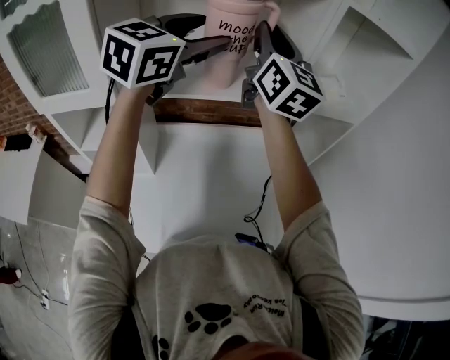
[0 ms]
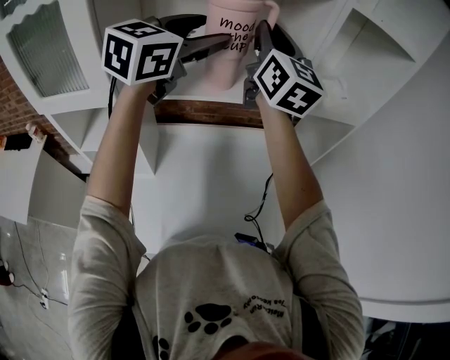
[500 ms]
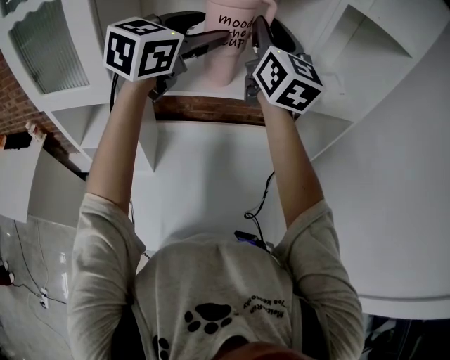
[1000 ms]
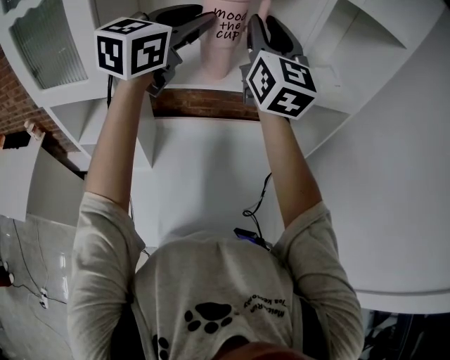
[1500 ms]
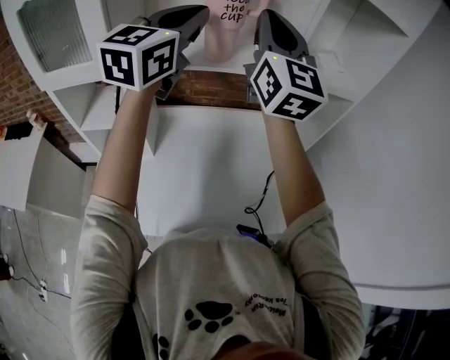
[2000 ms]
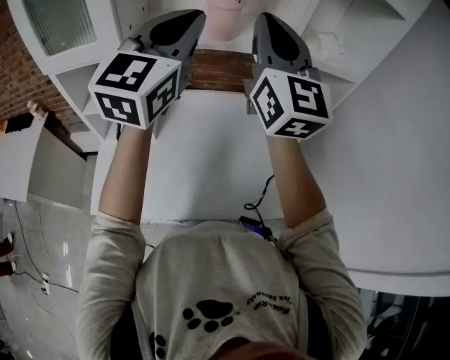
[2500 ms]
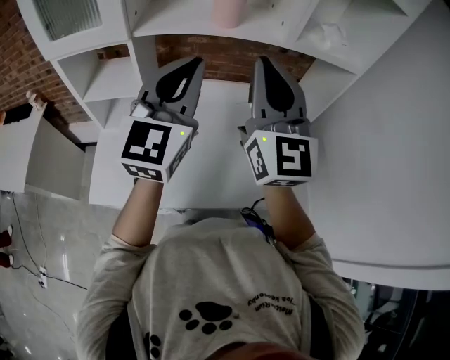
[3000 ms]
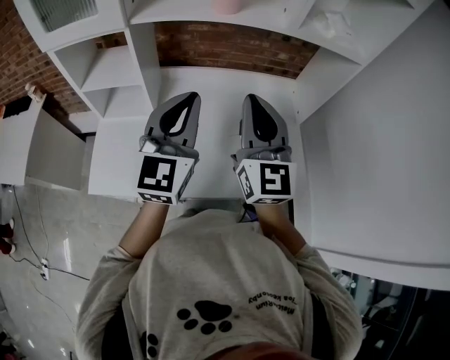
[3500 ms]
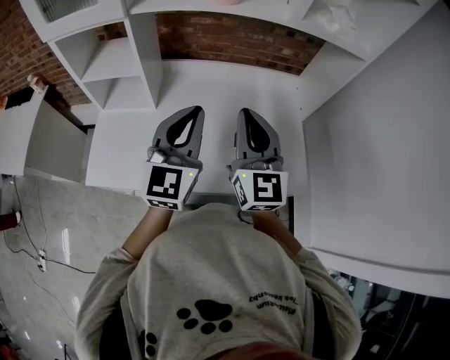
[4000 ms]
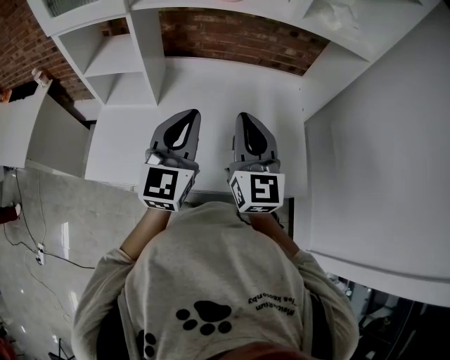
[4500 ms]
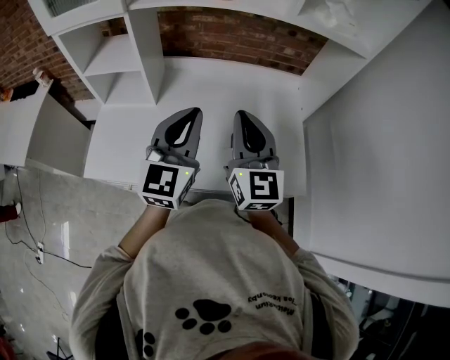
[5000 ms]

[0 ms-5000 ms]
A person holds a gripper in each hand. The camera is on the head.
0 ms to 2500 ms: The grippers both shift backward by approximately 15 cm. The left gripper turns by approximately 20 degrees, and closes.
2500 ms to 5000 ms: The two grippers go roughly 30 cm downward and backward.

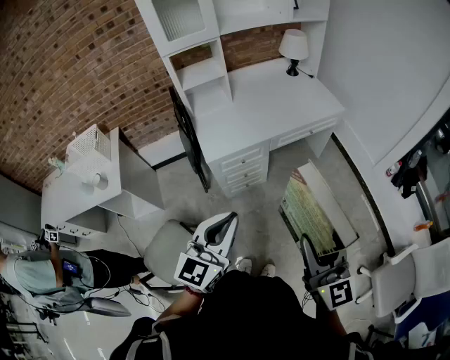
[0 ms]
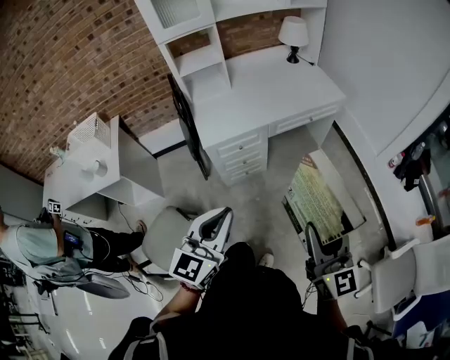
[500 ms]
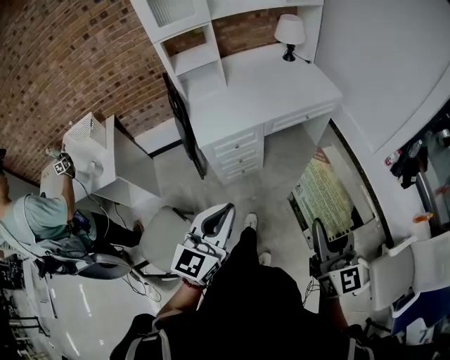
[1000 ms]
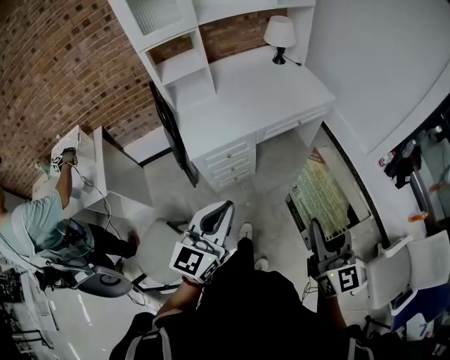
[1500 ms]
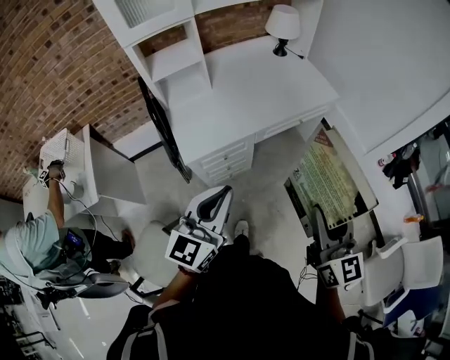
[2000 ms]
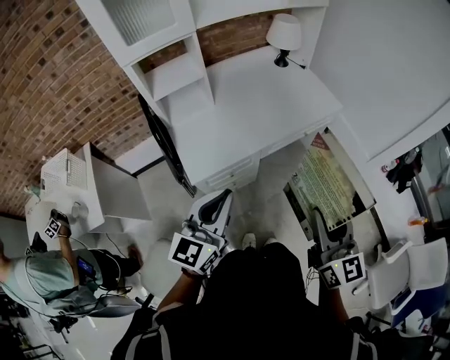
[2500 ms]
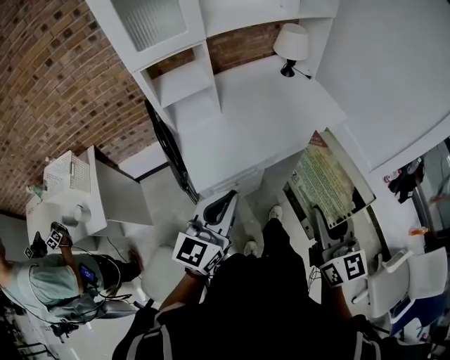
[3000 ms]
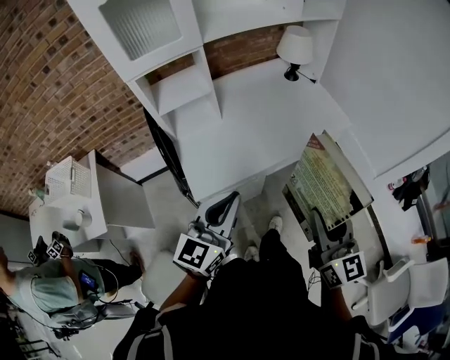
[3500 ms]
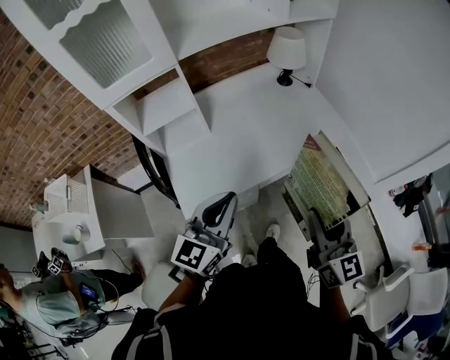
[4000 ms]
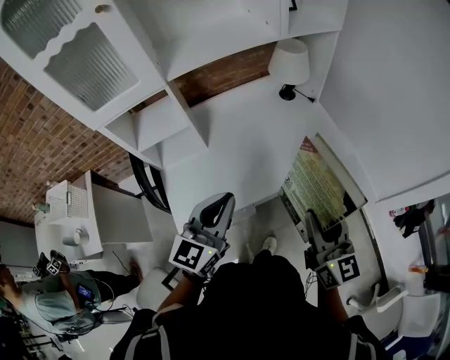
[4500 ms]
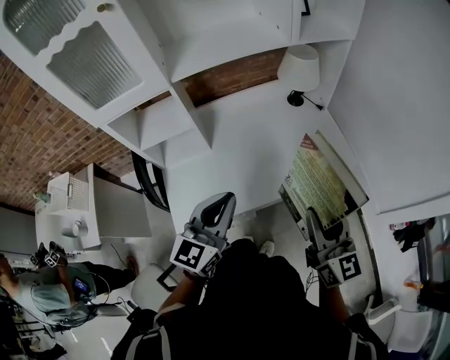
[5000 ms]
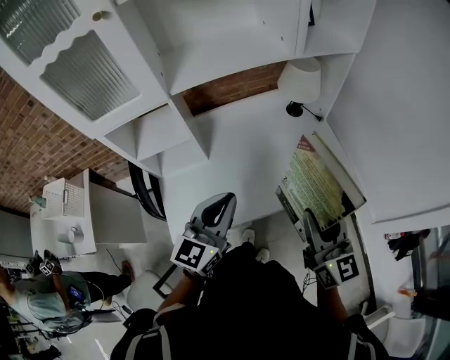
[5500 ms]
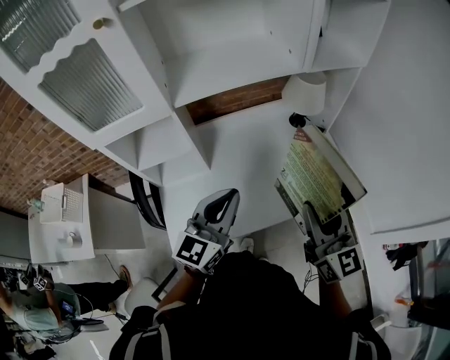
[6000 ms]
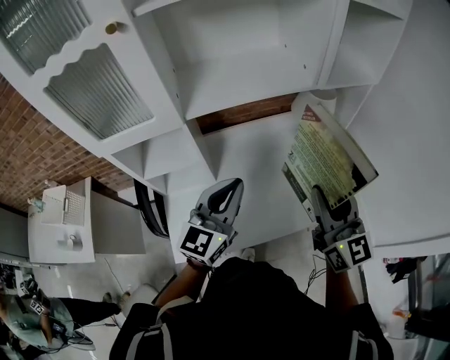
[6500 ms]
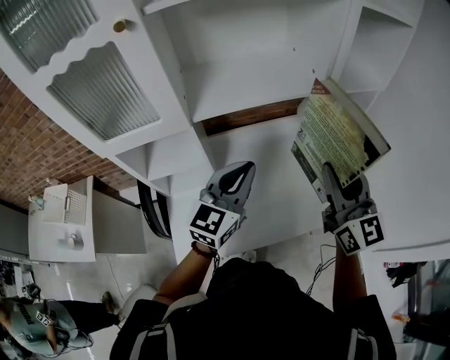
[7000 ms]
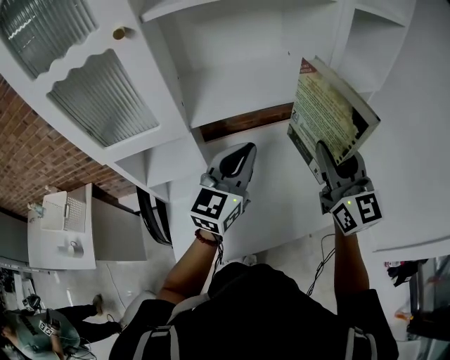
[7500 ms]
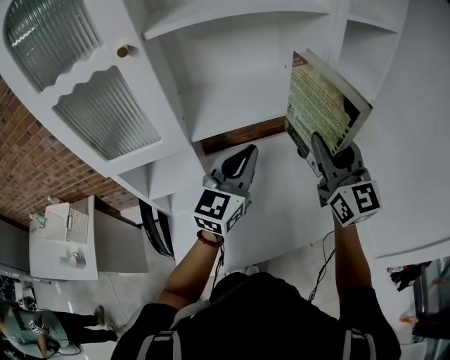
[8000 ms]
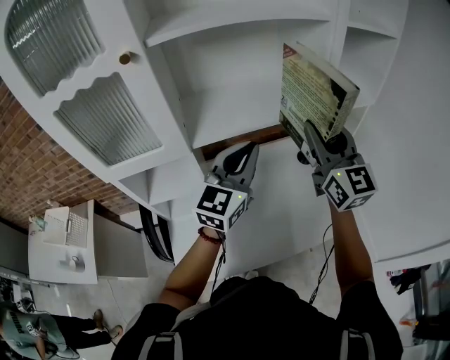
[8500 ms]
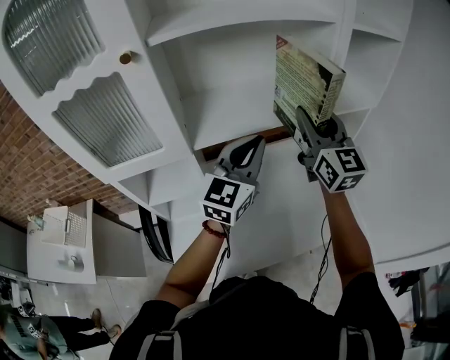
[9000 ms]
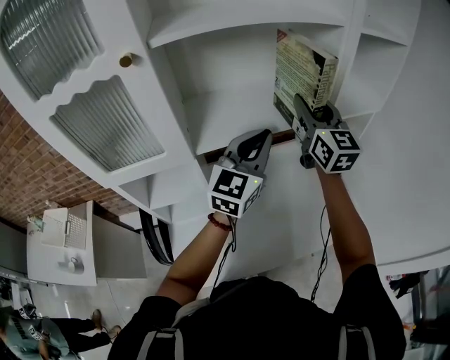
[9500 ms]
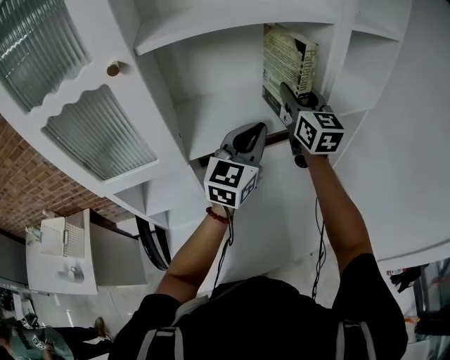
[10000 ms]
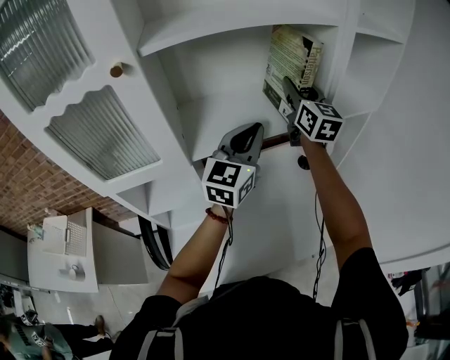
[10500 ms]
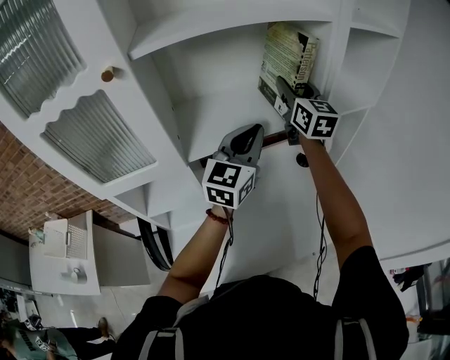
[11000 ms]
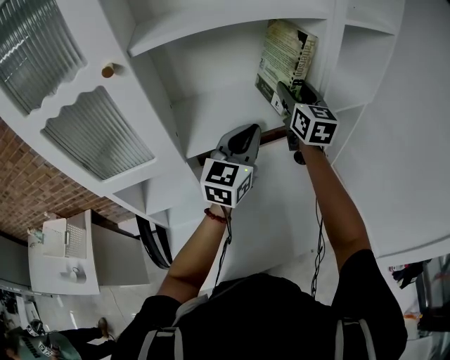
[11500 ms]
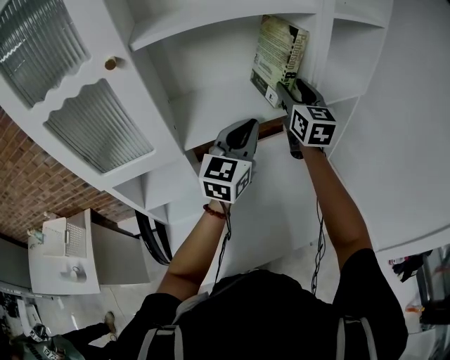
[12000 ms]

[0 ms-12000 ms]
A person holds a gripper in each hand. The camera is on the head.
0 ms to 2000 ms: The two grippers go some 15 cm forward.
2000 ms to 4000 ms: The grippers both shift forward by about 25 cm.
4000 ms to 6000 ms: Both grippers travel together forward, some 25 cm.
6000 ms to 8000 ms: Both grippers travel together forward and upward, approximately 20 cm.
8000 ms to 10000 ms: The right gripper shifts some 20 cm forward; the left gripper goes some 10 cm forward.
10000 ms to 12000 ms: The grippers move only a little.

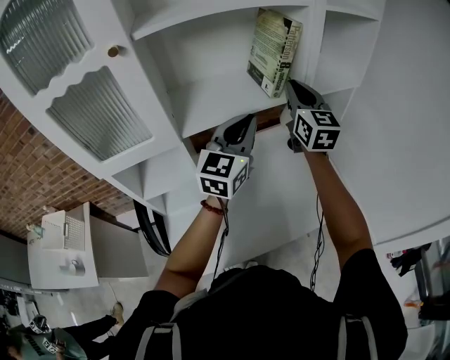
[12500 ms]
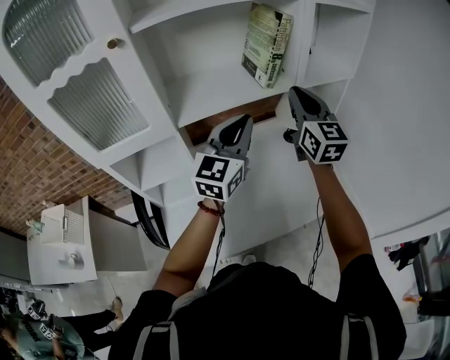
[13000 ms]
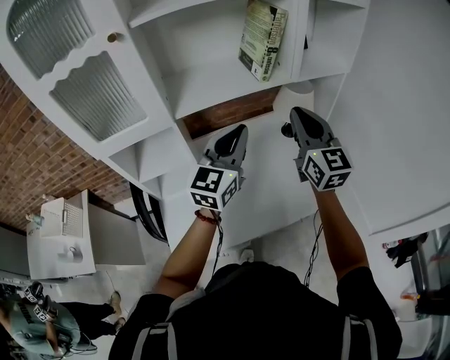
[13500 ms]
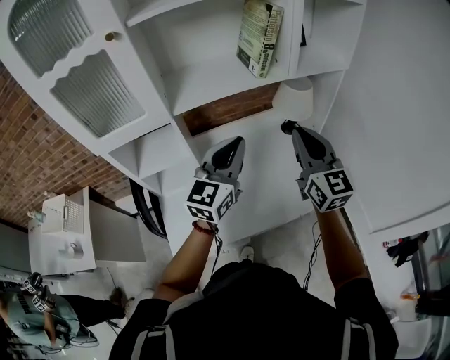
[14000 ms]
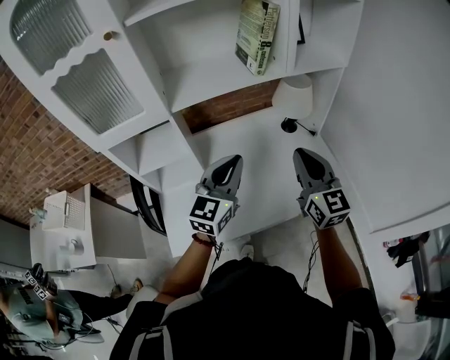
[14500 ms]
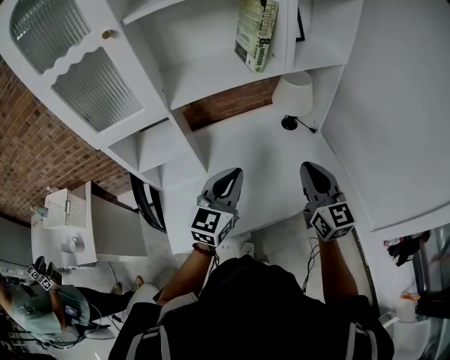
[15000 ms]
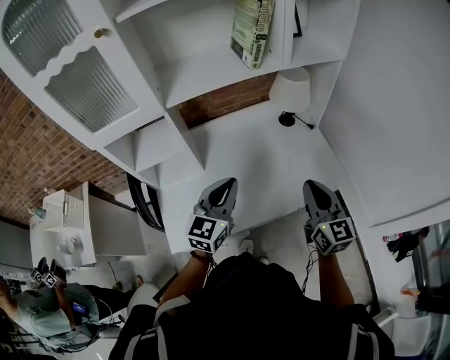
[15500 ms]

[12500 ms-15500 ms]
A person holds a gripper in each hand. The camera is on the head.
12500 ms to 14000 ms: The right gripper shifts approximately 20 cm backward; the left gripper goes approximately 10 cm backward.
14000 ms to 15500 ms: The left gripper goes some 15 cm downward and backward; the right gripper travels downward, backward and to the right by about 20 cm.

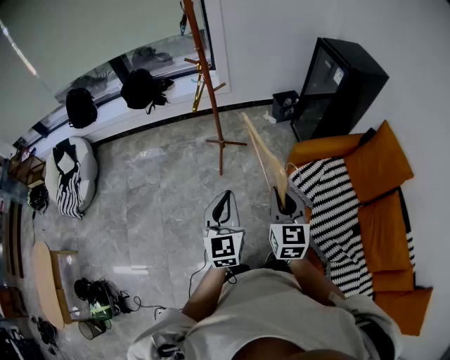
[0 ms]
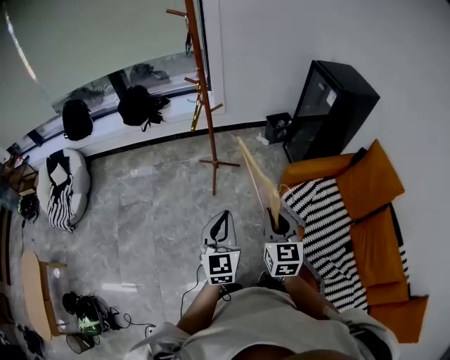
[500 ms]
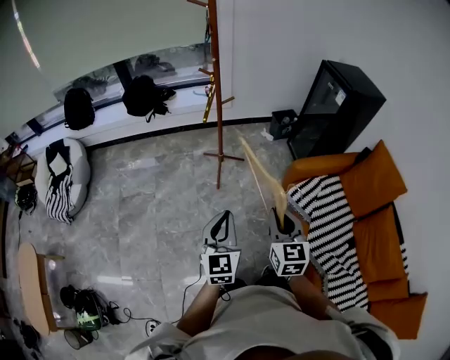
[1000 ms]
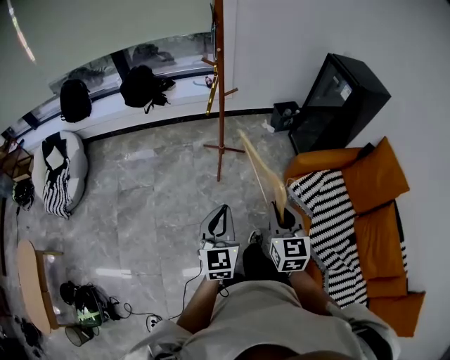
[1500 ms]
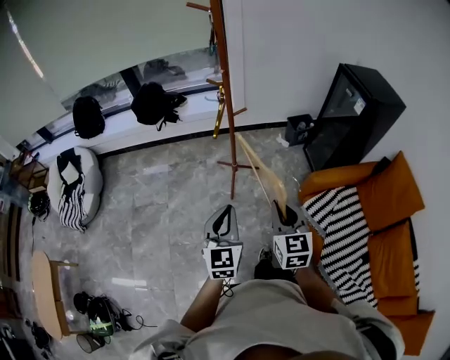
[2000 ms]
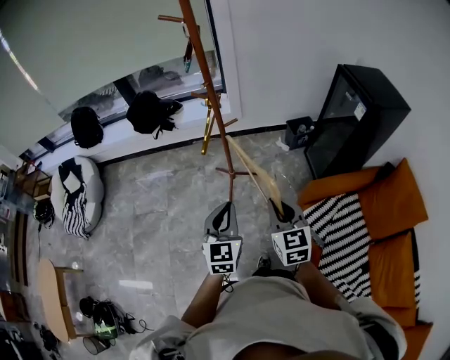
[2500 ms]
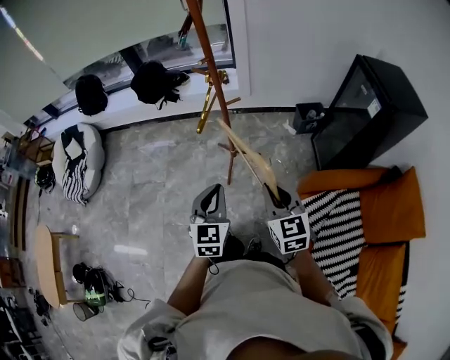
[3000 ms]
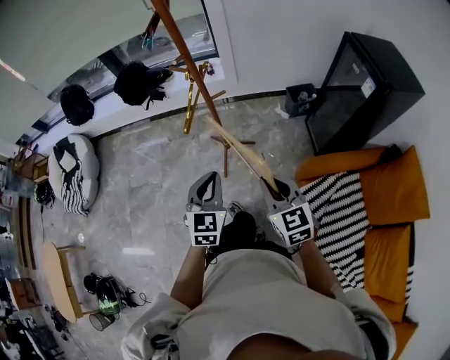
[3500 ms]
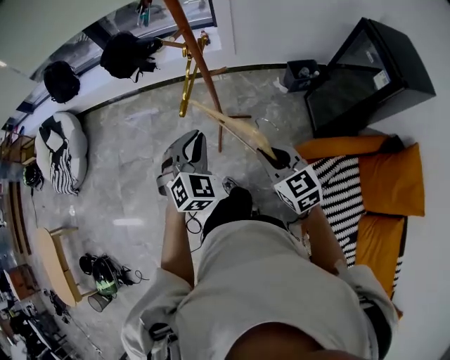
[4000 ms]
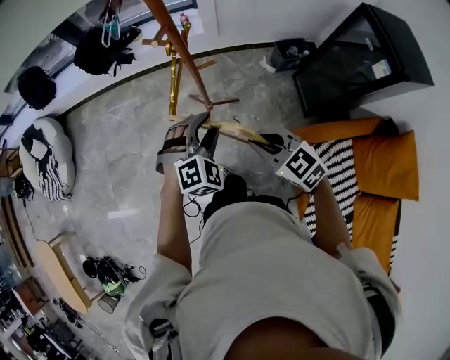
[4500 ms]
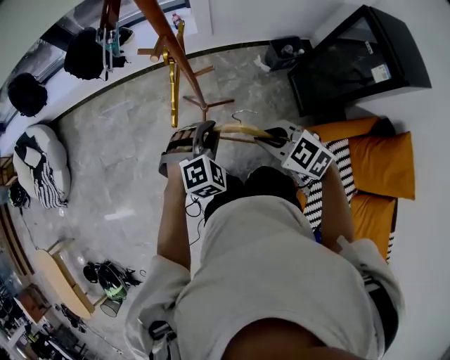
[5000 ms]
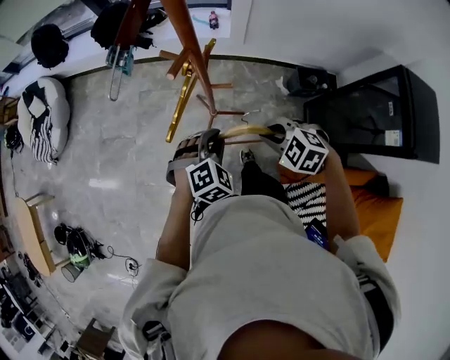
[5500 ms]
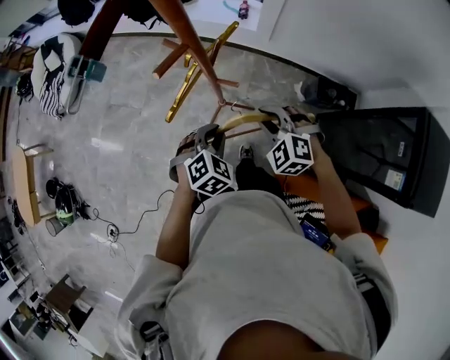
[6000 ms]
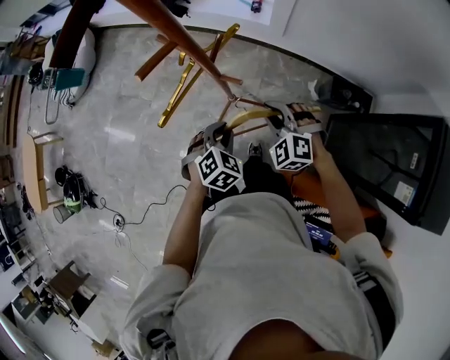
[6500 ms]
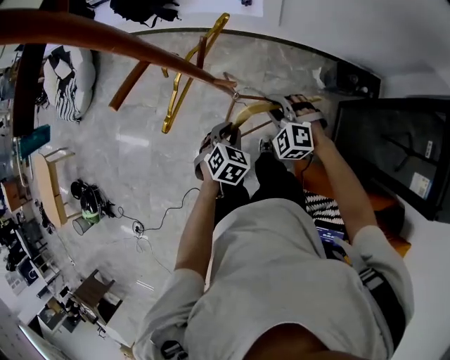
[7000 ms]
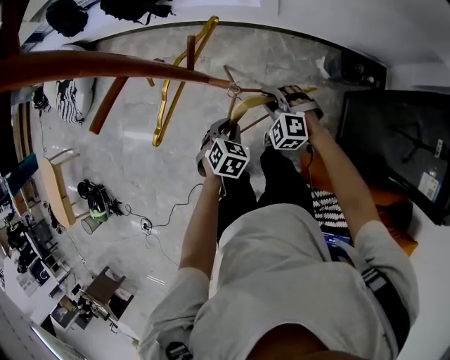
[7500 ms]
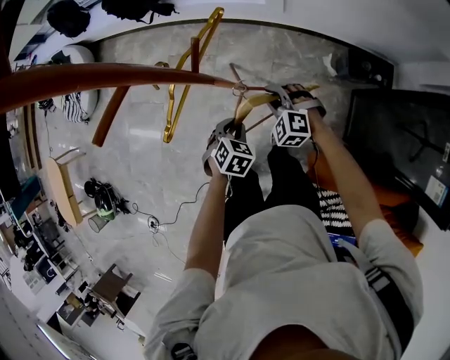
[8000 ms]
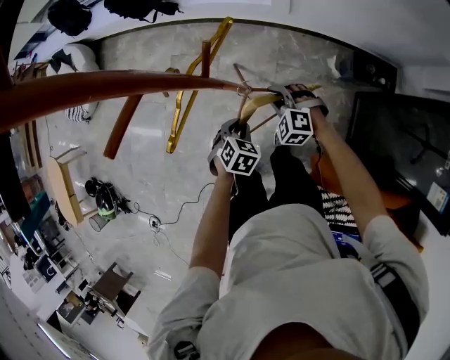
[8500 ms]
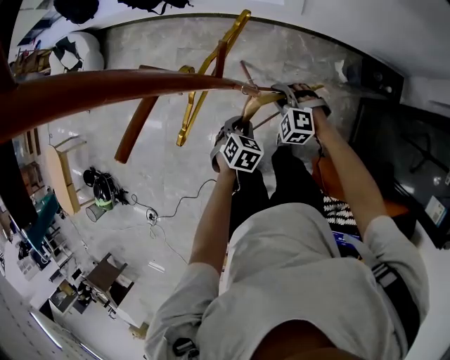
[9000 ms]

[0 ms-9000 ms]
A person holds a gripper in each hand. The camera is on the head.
0 ms to 2000 ms: Both grippers travel together forward and to the left, about 15 cm.
2000 ms to 4500 ms: The left gripper shifts roughly 35 cm forward and to the right, rotates around the line of its fingers by roughly 50 degrees, clockwise from behind, and opens; the right gripper travels forward by approximately 30 cm, and turns by approximately 50 degrees.
4500 ms to 7000 ms: The right gripper travels forward, downward and to the right by some 35 cm, and rotates around the line of its fingers by some 50 degrees, counterclockwise from behind; the left gripper travels downward, forward and to the right by roughly 25 cm, twists about 50 degrees counterclockwise, seen from behind, and closes its fingers.
7000 ms to 9000 ms: The right gripper is displaced downward and forward by roughly 10 cm, while the left gripper is displaced downward by approximately 10 cm.
